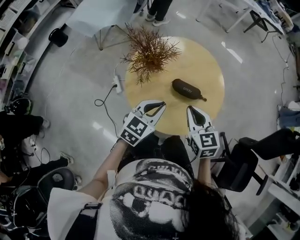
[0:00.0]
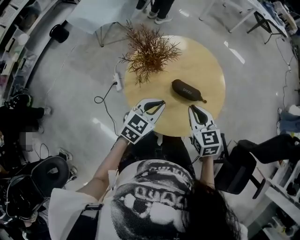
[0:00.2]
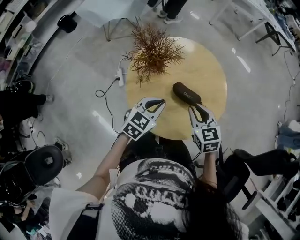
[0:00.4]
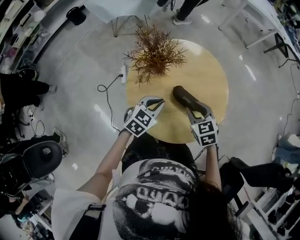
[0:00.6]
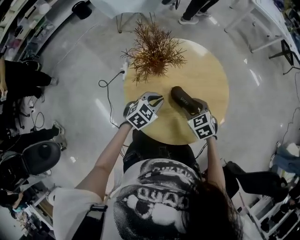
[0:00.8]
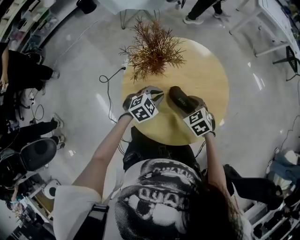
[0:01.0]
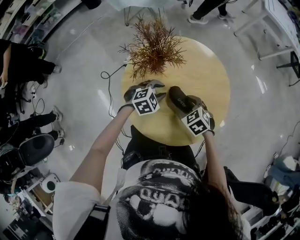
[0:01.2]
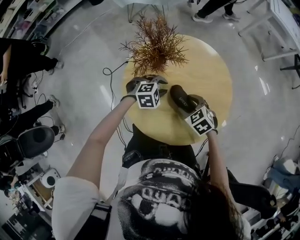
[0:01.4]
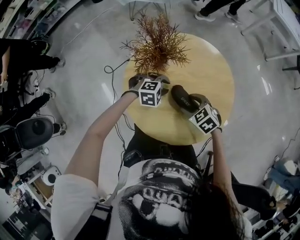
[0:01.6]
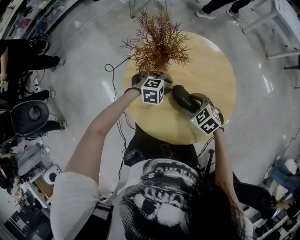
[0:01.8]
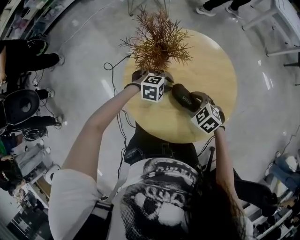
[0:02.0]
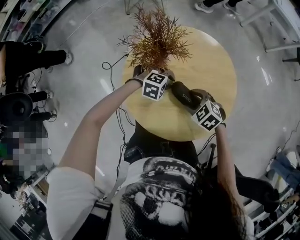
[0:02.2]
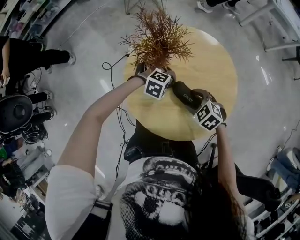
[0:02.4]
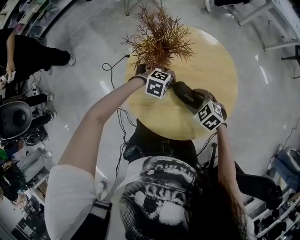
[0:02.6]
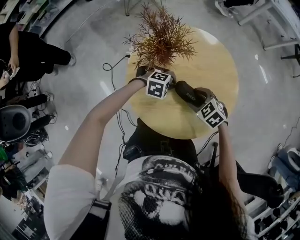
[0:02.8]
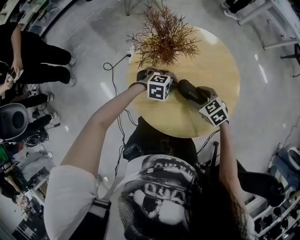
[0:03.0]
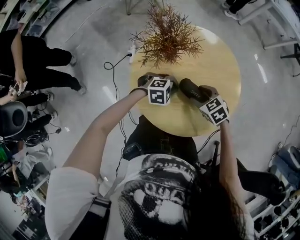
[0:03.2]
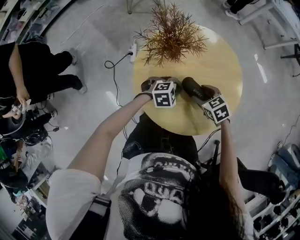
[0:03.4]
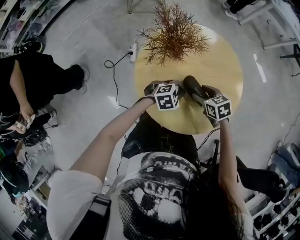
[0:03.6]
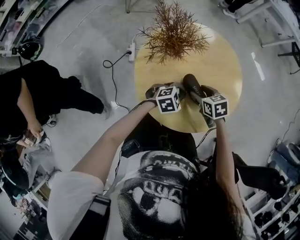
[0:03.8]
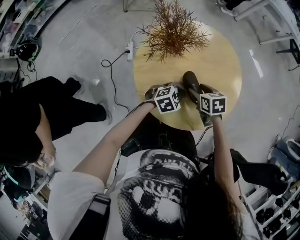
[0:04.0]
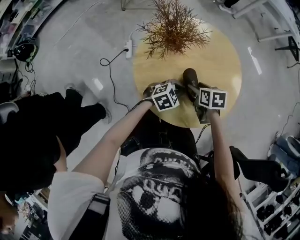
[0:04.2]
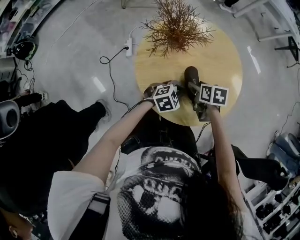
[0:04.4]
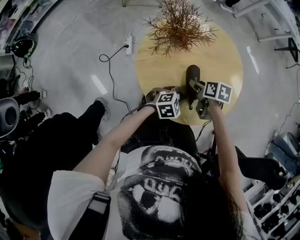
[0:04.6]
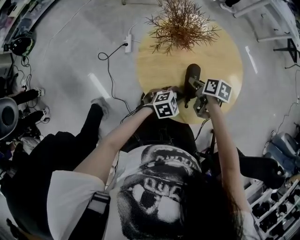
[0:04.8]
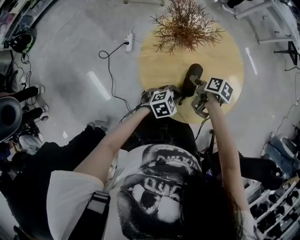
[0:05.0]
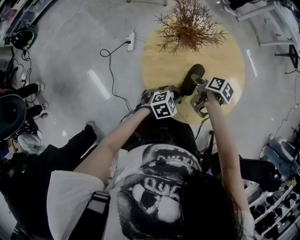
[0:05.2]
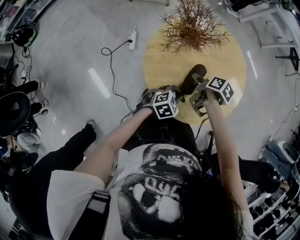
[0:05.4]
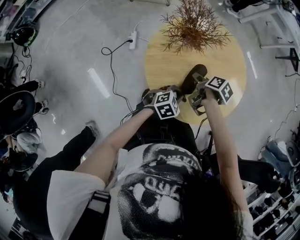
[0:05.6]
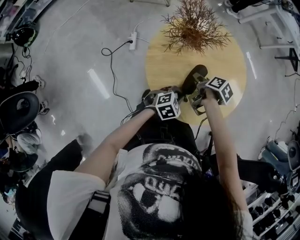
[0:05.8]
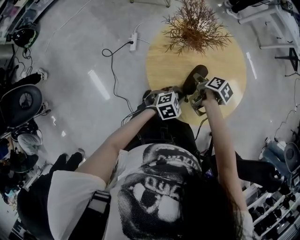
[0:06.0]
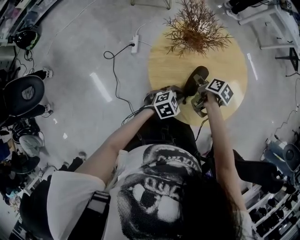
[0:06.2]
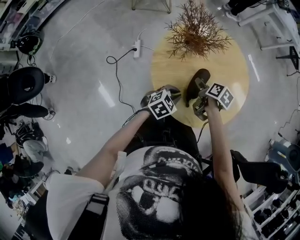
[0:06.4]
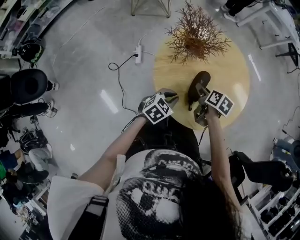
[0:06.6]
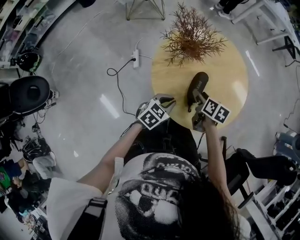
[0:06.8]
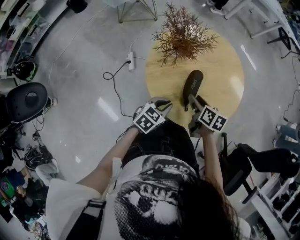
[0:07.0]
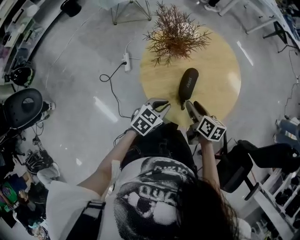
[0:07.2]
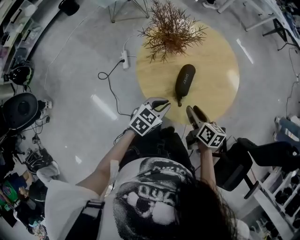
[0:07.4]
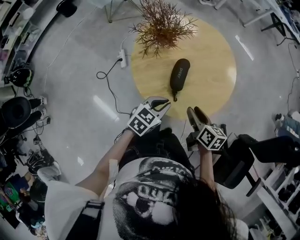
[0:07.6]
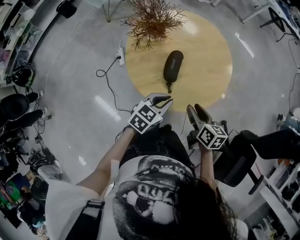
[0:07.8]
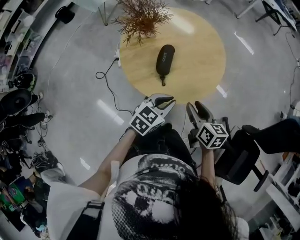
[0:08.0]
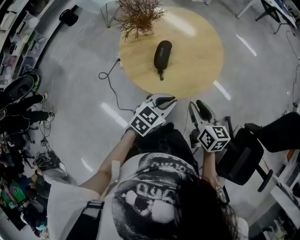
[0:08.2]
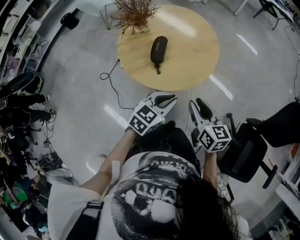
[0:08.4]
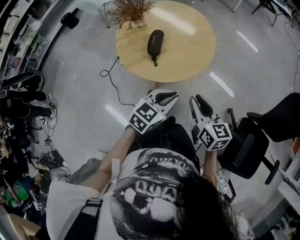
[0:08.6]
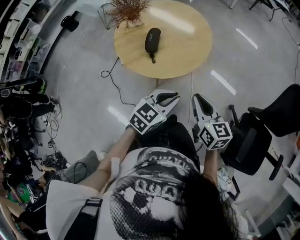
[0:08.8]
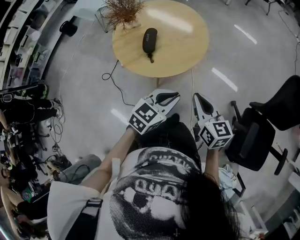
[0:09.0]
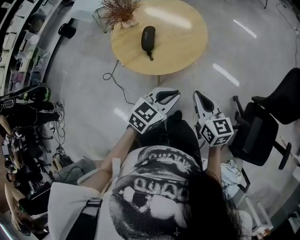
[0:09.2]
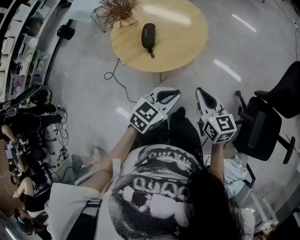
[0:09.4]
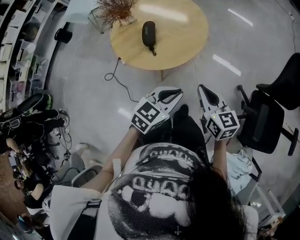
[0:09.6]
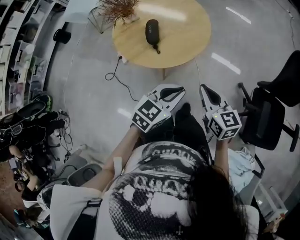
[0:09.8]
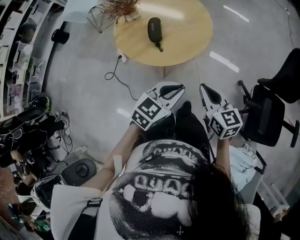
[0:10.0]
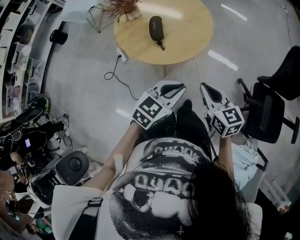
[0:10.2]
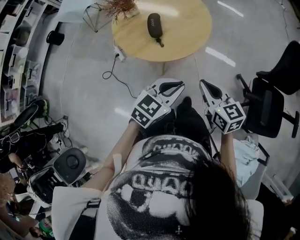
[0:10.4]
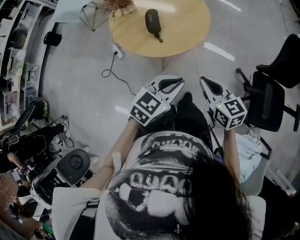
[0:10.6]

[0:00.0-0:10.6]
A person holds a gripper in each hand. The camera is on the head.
0:00.0 to 0:01.6: Both grippers move downward, roughly 15 cm. The left gripper tips its fingers downward by approximately 40 degrees, and opens. The right gripper rotates approximately 60 degrees, and opens its fingers.
0:01.6 to 0:03.0: The left gripper closes up.
0:03.0 to 0:04.6: The left gripper ends up some 10 cm from where it was, and swivels about 20 degrees. Meanwhile the right gripper twists some 60 degrees clockwise, seen from behind.
0:04.6 to 0:06.0: The right gripper rotates some 30 degrees.
0:06.0 to 0:07.6: The left gripper heads upward, covering some 5 cm, and travels to the left and back again, about 10 cm each way. Meanwhile the right gripper travels backward, to the right and upward by approximately 15 cm, and rotates roughly 30 degrees.
0:07.6 to 0:09.0: The grippers both shift to the right, backward and upward by some 25 cm. The right gripper swivels some 30 degrees, and closes.
0:09.0 to 0:10.6: Both grippers move to the left and backward, roughly 10 cm.

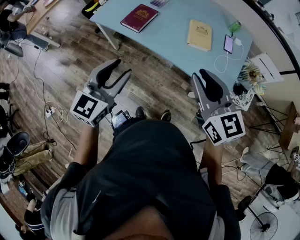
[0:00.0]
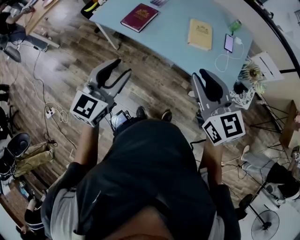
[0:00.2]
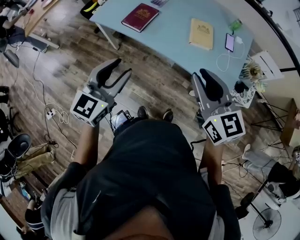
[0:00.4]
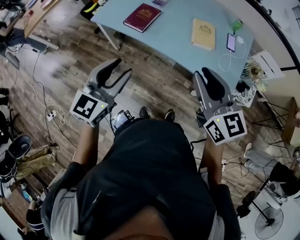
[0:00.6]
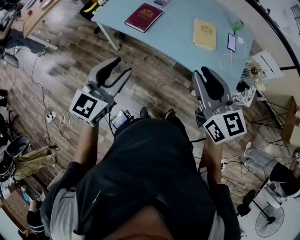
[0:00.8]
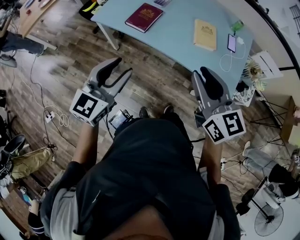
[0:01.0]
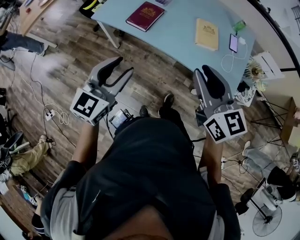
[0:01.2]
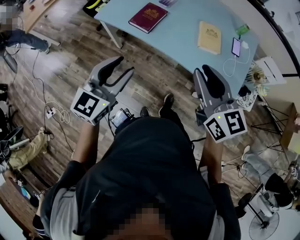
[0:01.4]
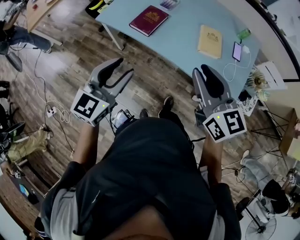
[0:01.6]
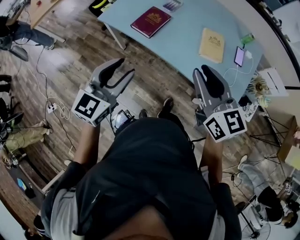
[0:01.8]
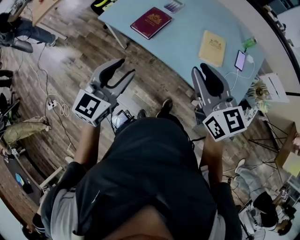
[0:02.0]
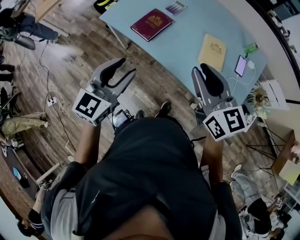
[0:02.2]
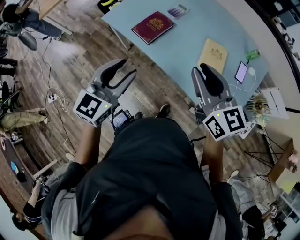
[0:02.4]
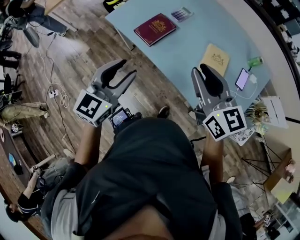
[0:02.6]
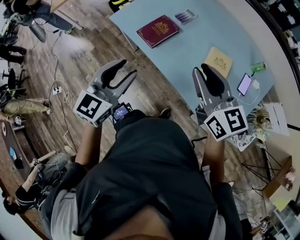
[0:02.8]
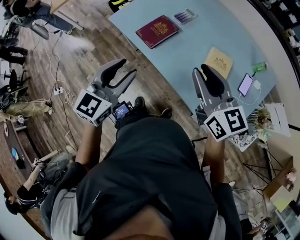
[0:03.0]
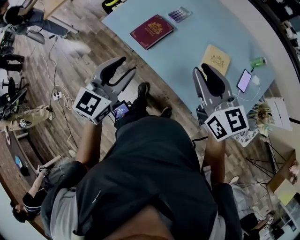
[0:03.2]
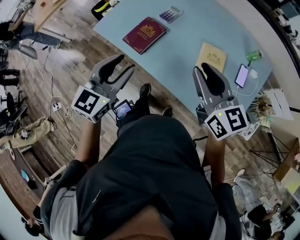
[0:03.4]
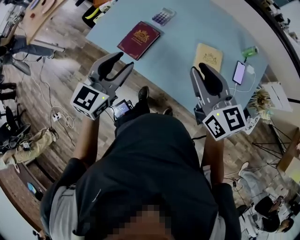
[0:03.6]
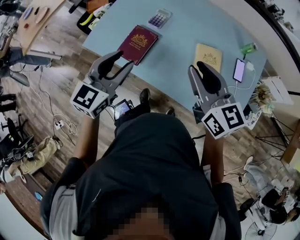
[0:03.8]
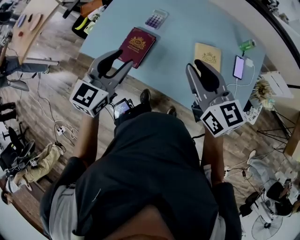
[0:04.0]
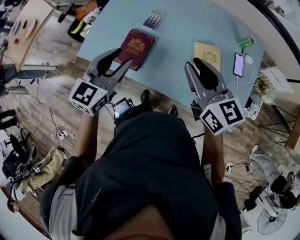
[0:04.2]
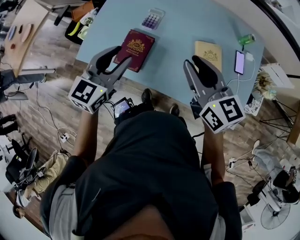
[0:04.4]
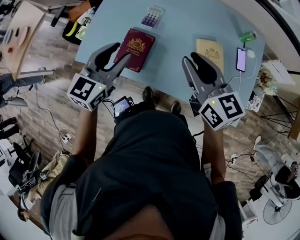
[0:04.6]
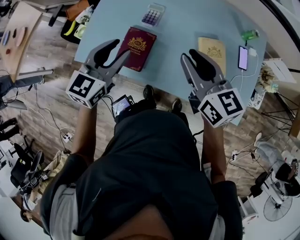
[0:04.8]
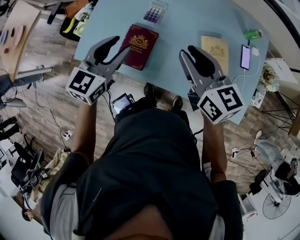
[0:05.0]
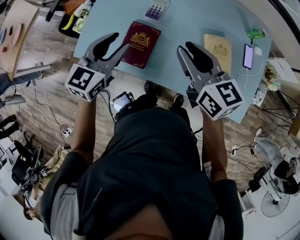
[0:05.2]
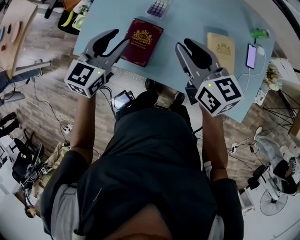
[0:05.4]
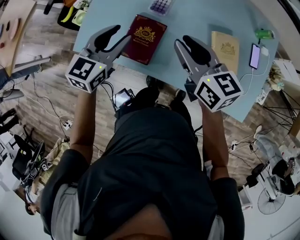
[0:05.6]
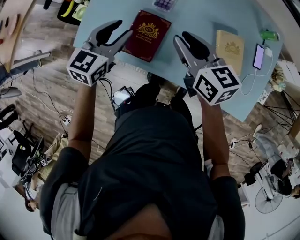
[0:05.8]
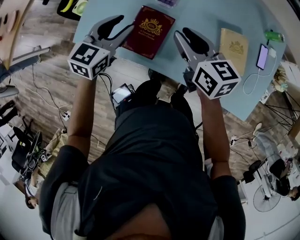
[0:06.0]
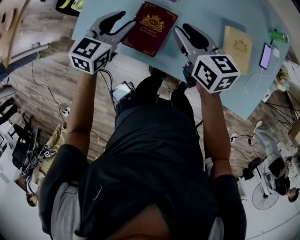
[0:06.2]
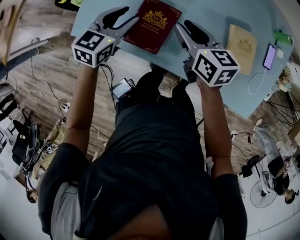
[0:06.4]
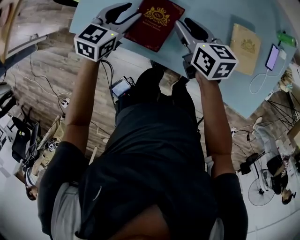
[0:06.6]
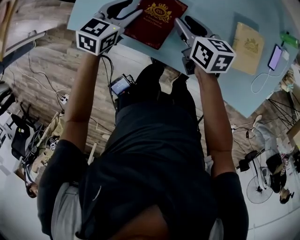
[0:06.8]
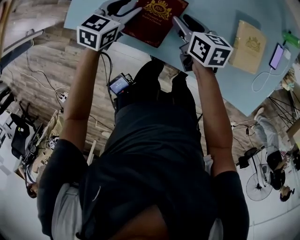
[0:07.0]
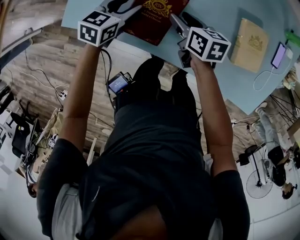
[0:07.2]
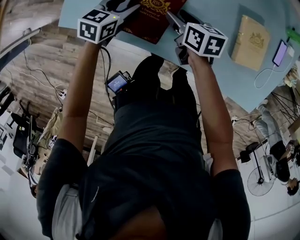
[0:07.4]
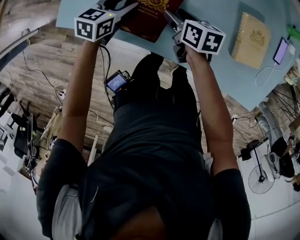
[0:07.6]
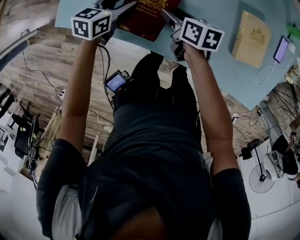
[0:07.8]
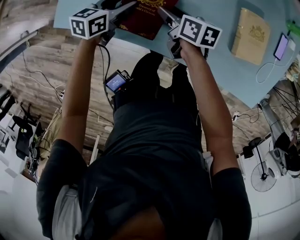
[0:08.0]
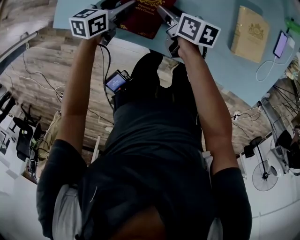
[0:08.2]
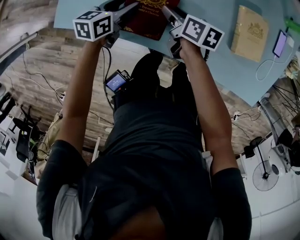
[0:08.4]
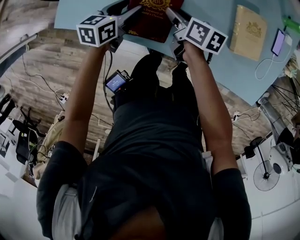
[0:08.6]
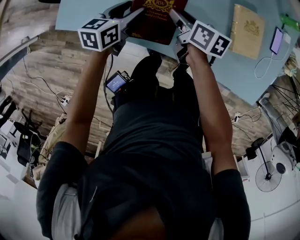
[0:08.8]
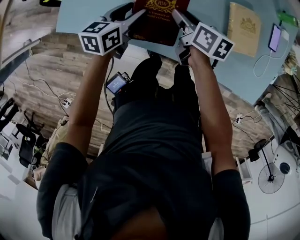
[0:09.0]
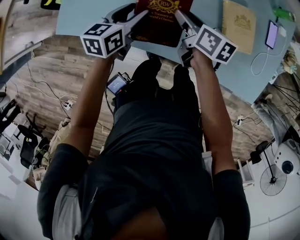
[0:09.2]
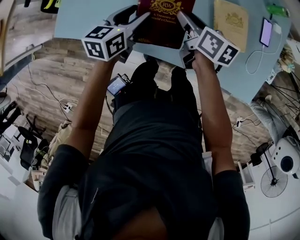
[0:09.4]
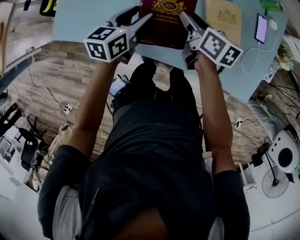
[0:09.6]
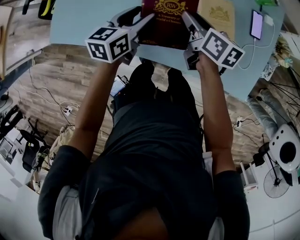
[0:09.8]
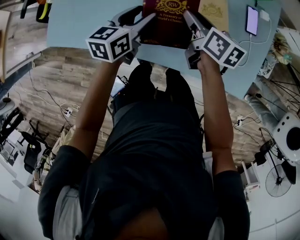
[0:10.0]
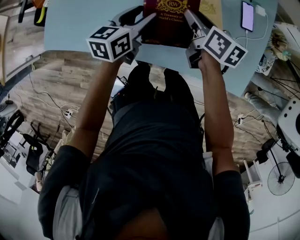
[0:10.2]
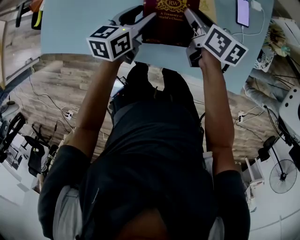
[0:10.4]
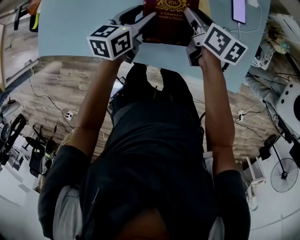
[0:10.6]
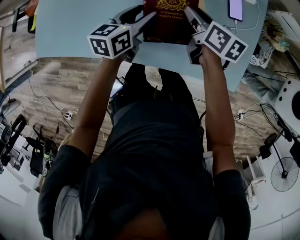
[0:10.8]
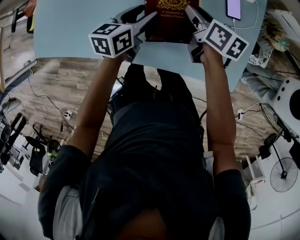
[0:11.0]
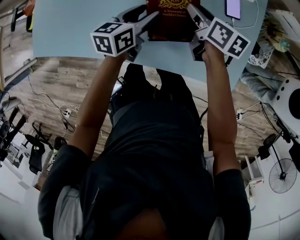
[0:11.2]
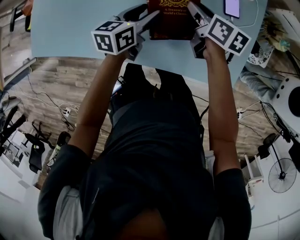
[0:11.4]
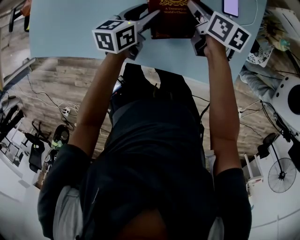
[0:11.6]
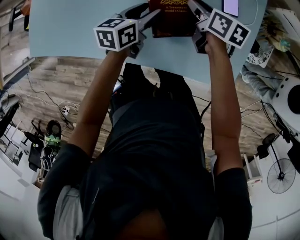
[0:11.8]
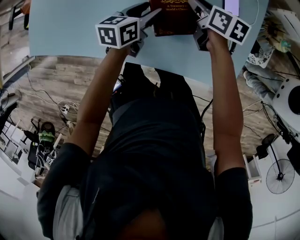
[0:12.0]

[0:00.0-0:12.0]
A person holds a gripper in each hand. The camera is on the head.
0:00.0 to 0:01.6: The right gripper heads to the left and forward, covering roughly 10 cm, while the left gripper is displaced to the left by roughly 5 cm.
0:01.6 to 0:03.0: The two grippers go about 15 cm forward and to the right.
0:03.0 to 0:04.4: The right gripper moves forward, roughly 15 cm, and turns by approximately 20 degrees. The left gripper shifts approximately 25 cm forward, and rotates approximately 20 degrees.
0:04.4 to 0:06.0: The left gripper moves downward, forward and to the left, about 20 cm. The right gripper travels downward, to the left and forward by roughly 20 cm.
0:06.0 to 0:07.6: Both grippers move downward, about 20 cm. The right gripper rotates some 30 degrees, and opens up. The left gripper turns by roughly 20 degrees.
0:07.6 to 0:09.0: Both grippers travel together to the right and upward, approximately 10 cm.
0:09.0 to 0:10.4: Both grippers travel together to the right, approximately 25 cm.
0:10.4 to 0:12.0: The right gripper moves to the right, downward and forward, about 15 cm, while the left gripper goes about 15 cm to the right and downward.

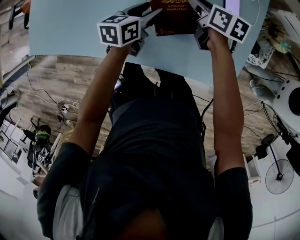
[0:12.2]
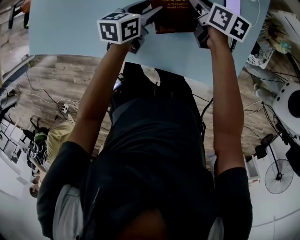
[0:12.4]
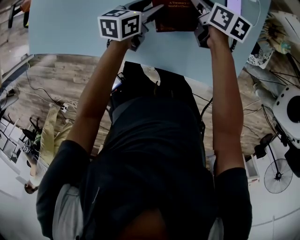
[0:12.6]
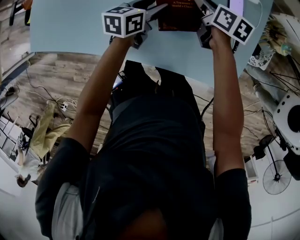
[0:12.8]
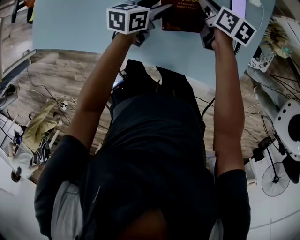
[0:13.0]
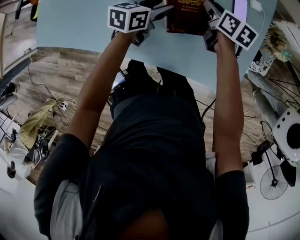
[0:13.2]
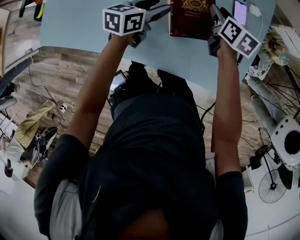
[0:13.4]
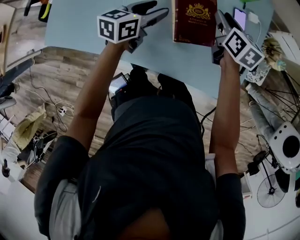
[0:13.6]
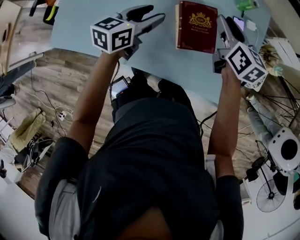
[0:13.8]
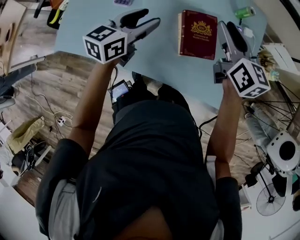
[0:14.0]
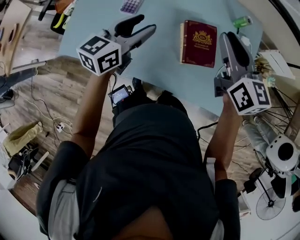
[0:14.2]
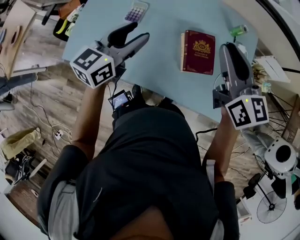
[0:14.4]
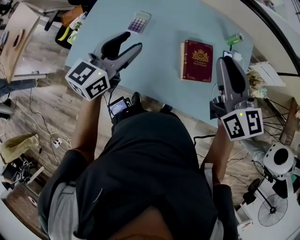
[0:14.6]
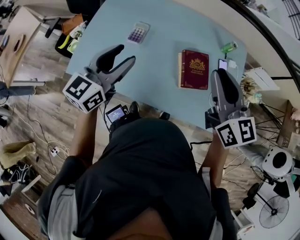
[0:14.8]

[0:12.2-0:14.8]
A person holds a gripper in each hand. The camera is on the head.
0:12.2 to 0:13.4: The right gripper goes some 5 cm upward. Meanwhile the left gripper shifts by approximately 5 cm.
0:13.4 to 0:14.8: The right gripper heads upward and backward, covering approximately 40 cm, and angles its fingers upward, by some 30 degrees. Meanwhile the left gripper heads upward, to the left and backward, covering about 40 cm, and changes its angle by roughly 40 degrees.
